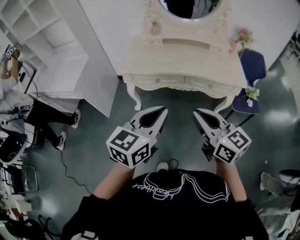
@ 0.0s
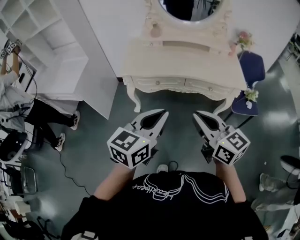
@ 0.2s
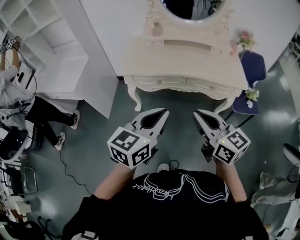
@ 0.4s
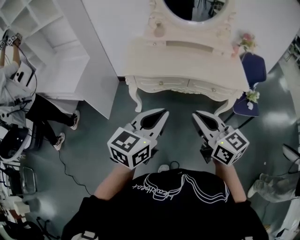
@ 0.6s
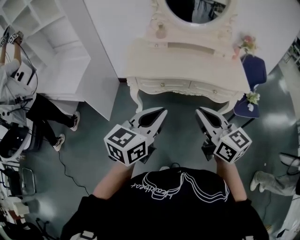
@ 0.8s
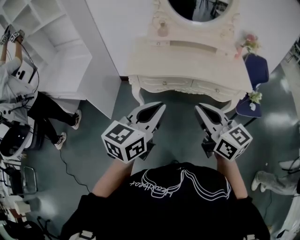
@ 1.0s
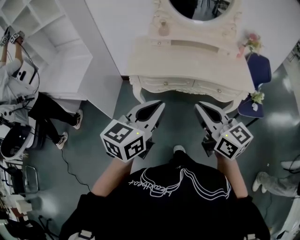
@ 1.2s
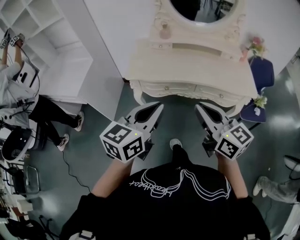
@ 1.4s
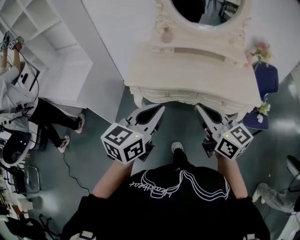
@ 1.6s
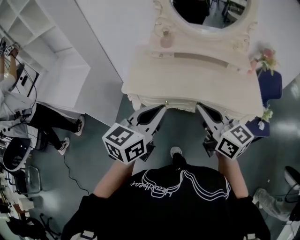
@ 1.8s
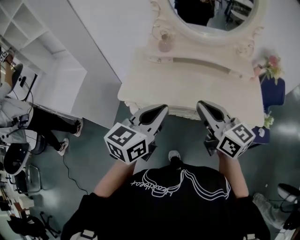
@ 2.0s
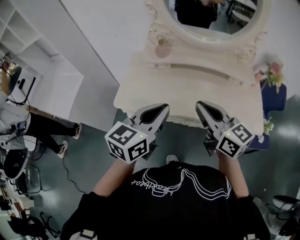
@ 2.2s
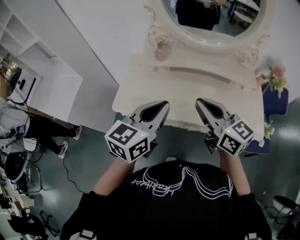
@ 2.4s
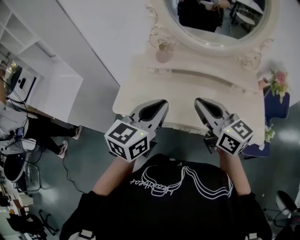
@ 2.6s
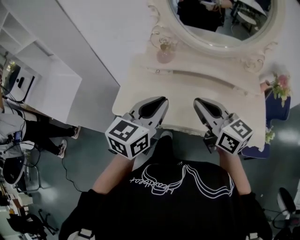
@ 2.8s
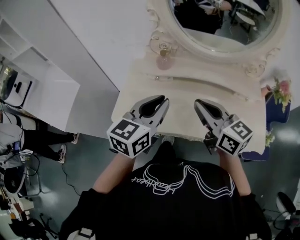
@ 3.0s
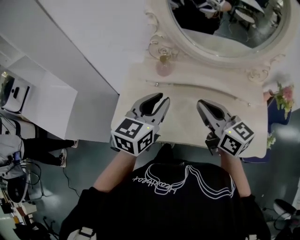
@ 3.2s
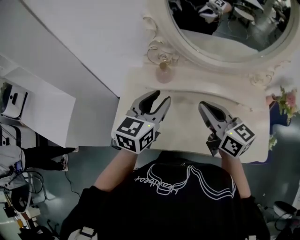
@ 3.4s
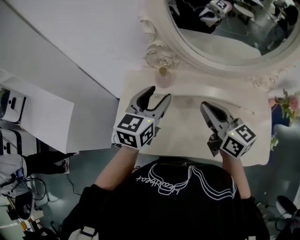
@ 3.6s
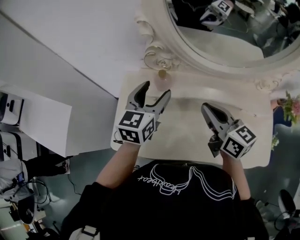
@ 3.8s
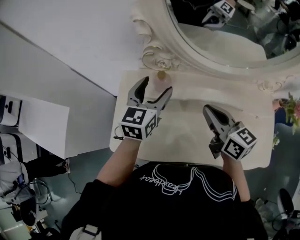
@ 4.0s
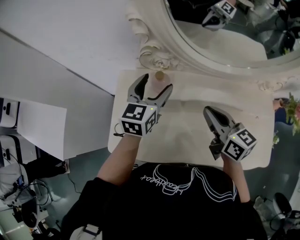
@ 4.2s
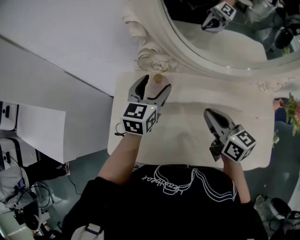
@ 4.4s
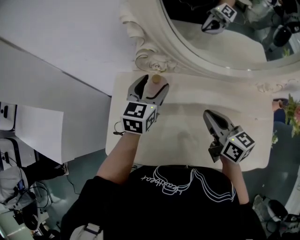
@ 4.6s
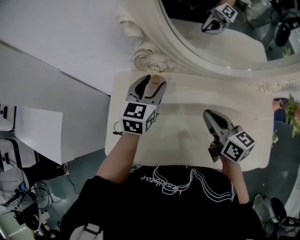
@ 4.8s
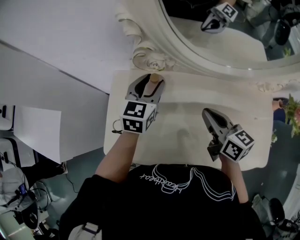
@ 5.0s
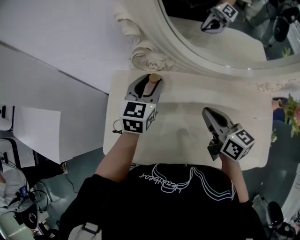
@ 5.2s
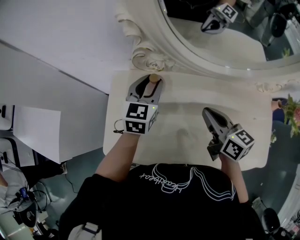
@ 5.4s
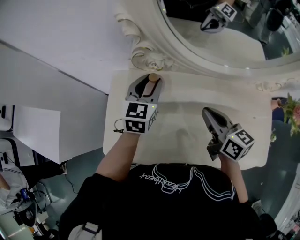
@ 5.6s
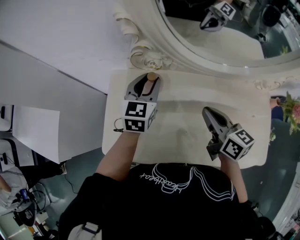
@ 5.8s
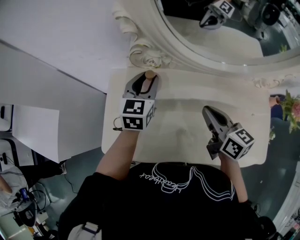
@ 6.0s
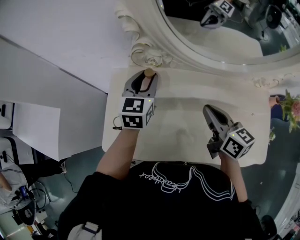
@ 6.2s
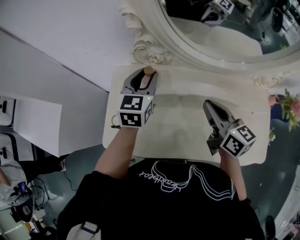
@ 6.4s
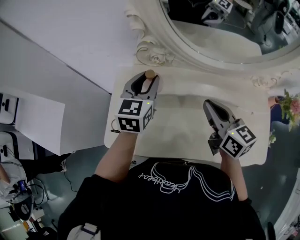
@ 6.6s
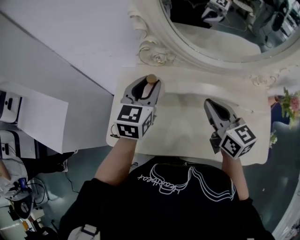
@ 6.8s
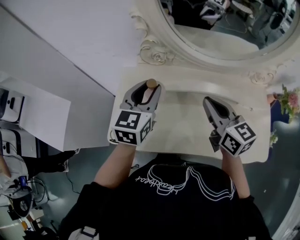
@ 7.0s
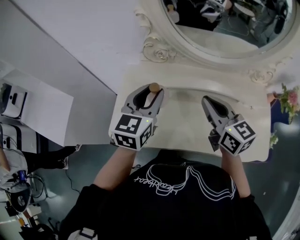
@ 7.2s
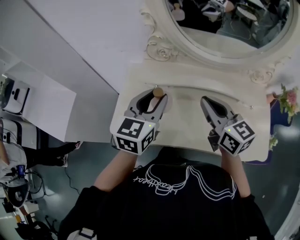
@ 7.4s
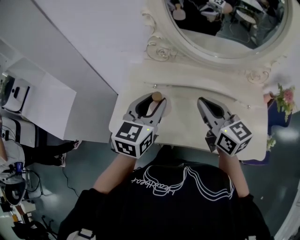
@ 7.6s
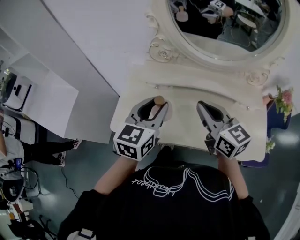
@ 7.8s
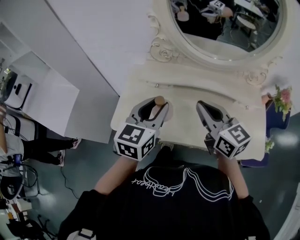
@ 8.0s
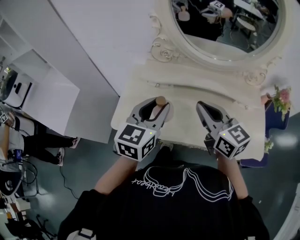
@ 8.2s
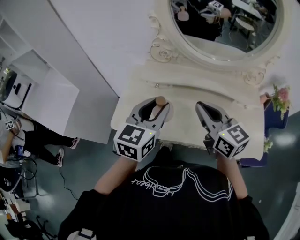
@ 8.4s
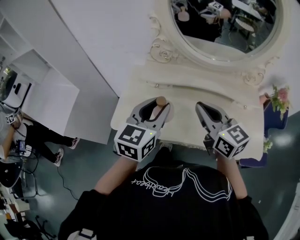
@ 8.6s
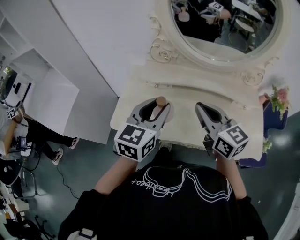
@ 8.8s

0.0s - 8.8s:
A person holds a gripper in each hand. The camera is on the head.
0.0s - 1.4s: The left gripper is displaced forward and to the left by roughly 10 cm; the right gripper moves forward, about 10 cm.
1.4s - 3.0s: The two grippers go roughly 35 cm forward.
3.0s - 4.4s: The left gripper travels forward by some 30 cm, and opens up. The right gripper moves forward and downward, roughly 20 cm.
4.4s - 5.8s: The left gripper closes its fingers.
5.8s - 7.4s: The right gripper travels upward and backward by some 10 cm, and swivels roughly 20 degrees, while the left gripper shifts approximately 20 cm backward and upward.
7.4s - 8.8s: The grippers both shift backward by approximately 5 cm.

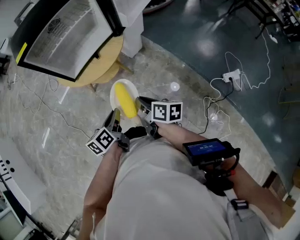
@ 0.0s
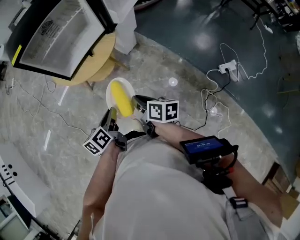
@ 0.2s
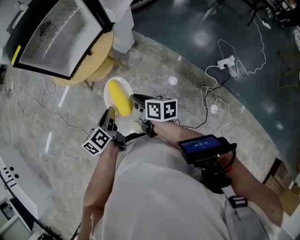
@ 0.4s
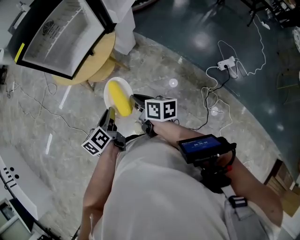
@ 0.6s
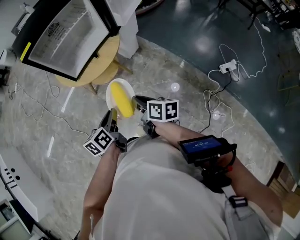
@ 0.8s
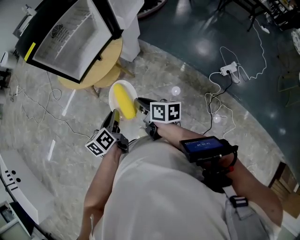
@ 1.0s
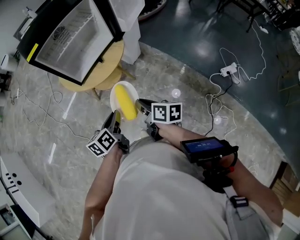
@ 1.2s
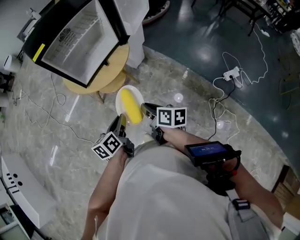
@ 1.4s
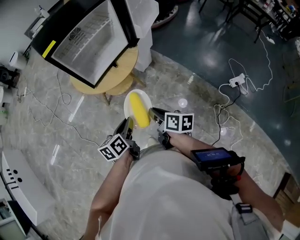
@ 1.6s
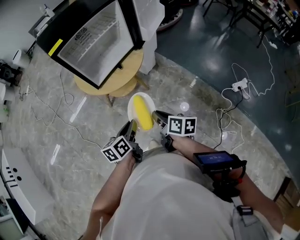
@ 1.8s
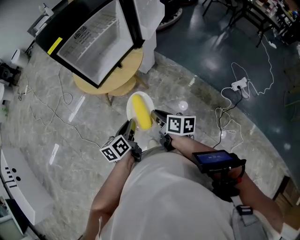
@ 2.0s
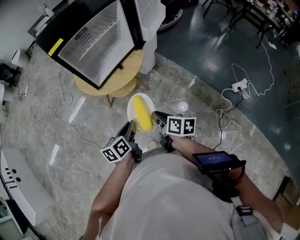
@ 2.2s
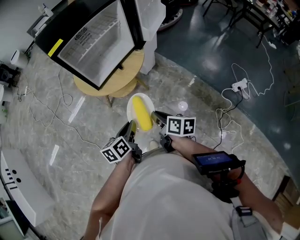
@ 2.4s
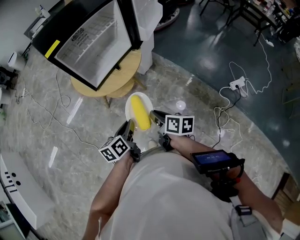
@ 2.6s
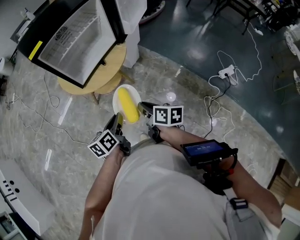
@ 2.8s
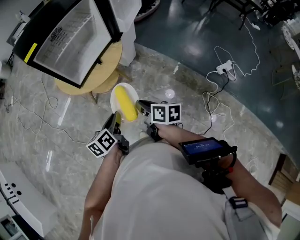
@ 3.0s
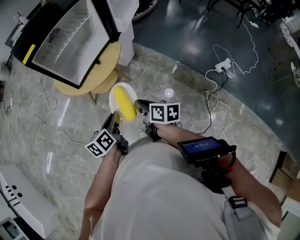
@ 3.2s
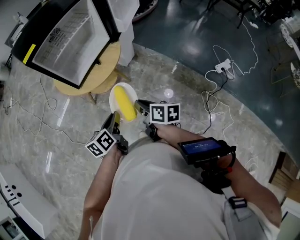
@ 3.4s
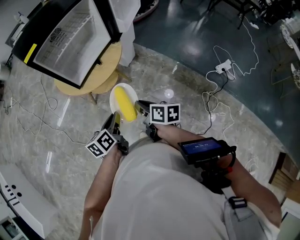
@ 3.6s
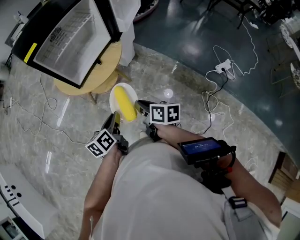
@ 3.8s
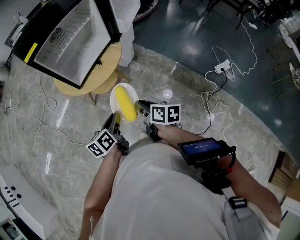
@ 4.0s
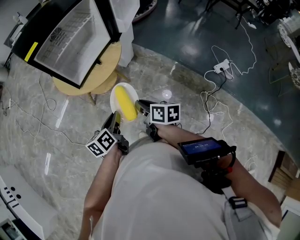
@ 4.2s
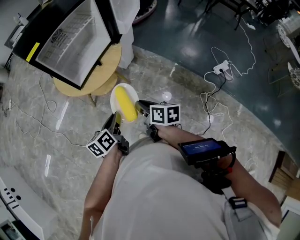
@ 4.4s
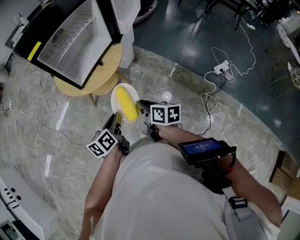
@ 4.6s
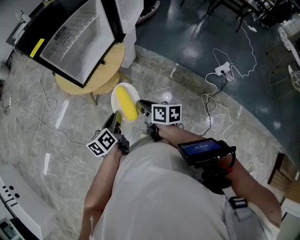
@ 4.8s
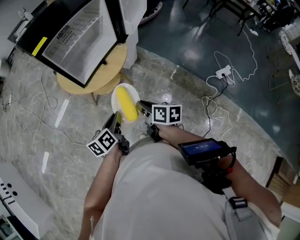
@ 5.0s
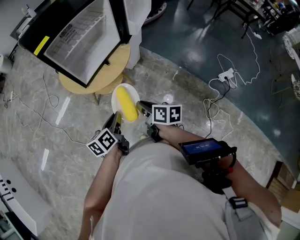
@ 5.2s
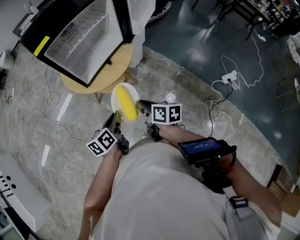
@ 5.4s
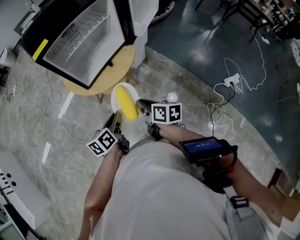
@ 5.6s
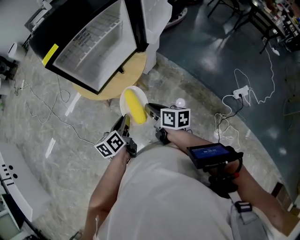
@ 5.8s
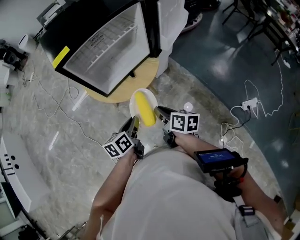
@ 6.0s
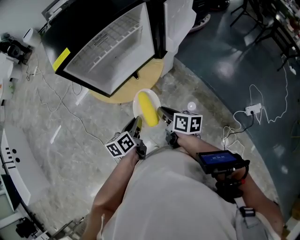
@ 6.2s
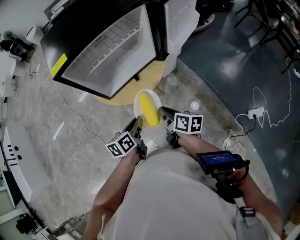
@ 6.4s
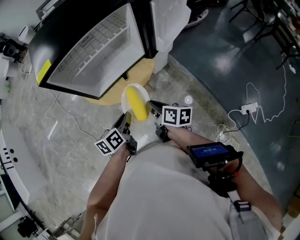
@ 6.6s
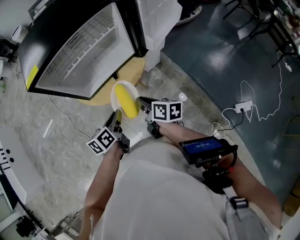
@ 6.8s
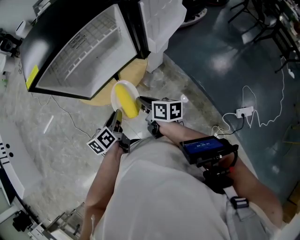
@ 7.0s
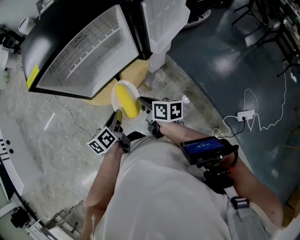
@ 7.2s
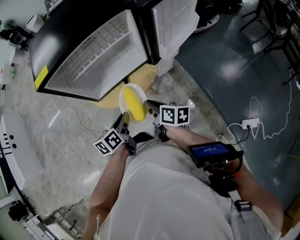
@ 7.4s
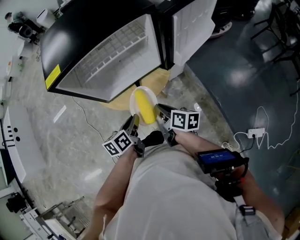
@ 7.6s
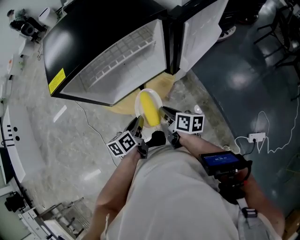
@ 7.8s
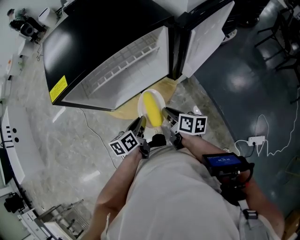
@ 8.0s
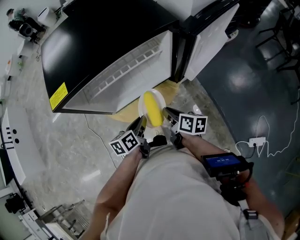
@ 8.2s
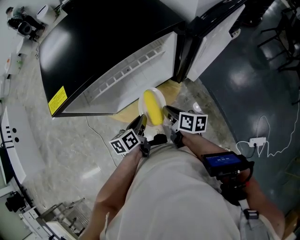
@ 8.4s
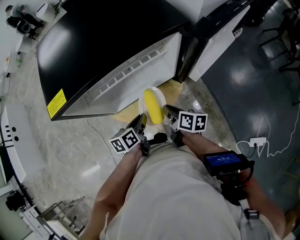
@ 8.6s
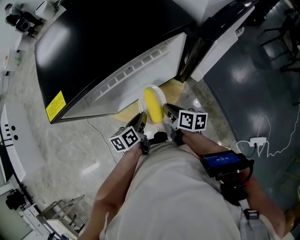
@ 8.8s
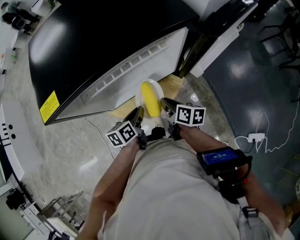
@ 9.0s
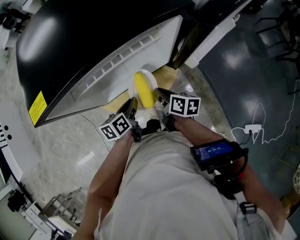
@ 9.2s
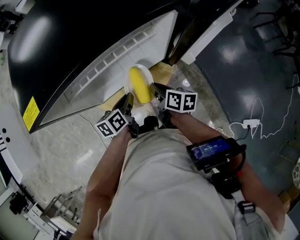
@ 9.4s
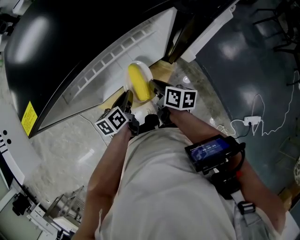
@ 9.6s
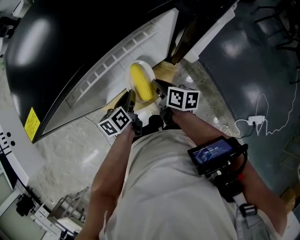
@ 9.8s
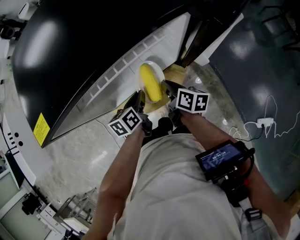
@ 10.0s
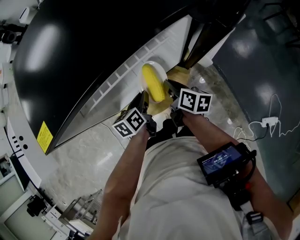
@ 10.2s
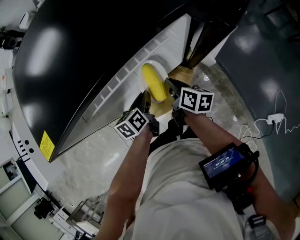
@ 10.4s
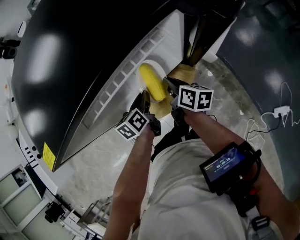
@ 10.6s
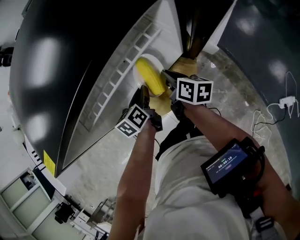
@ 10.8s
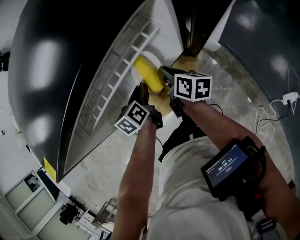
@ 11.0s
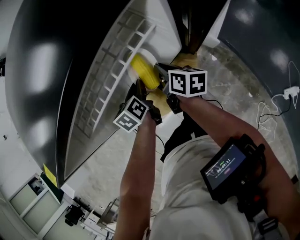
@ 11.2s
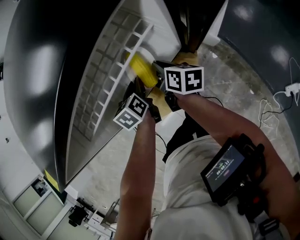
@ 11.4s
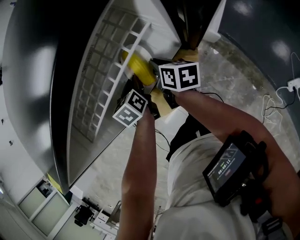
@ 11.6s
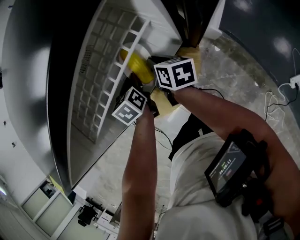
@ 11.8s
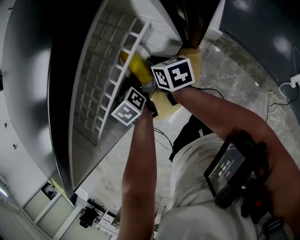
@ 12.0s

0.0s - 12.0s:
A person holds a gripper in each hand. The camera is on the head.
0.0s - 1.6s: The left gripper moves some 5 cm. The right gripper is displaced to the left by some 5 cm.
1.6s - 3.0s: The grippers stay close to where they were, moving slightly.
3.0s - 4.4s: Both grippers stay about where they are.
4.4s - 6.0s: Both grippers travel together forward, approximately 10 cm.
6.0s - 7.6s: The right gripper travels forward by roughly 15 cm; the left gripper goes roughly 10 cm forward and to the right.
7.6s - 9.0s: The two grippers go approximately 10 cm forward.
9.0s - 10.4s: Both grippers travel together forward, roughly 10 cm.
10.4s - 12.0s: Both grippers move forward, about 10 cm. The left gripper rotates approximately 30 degrees.

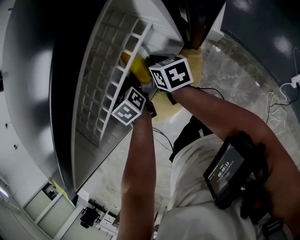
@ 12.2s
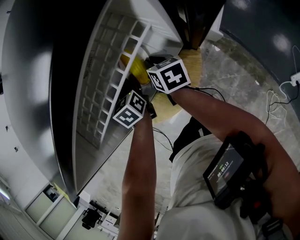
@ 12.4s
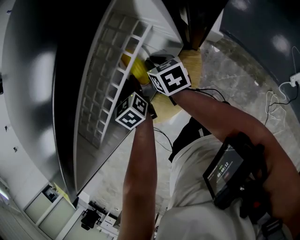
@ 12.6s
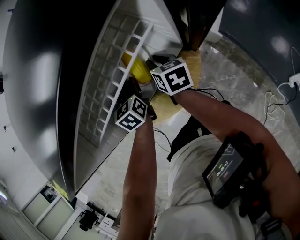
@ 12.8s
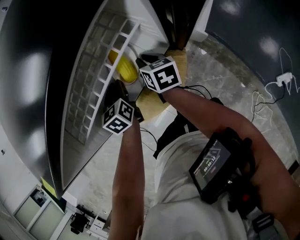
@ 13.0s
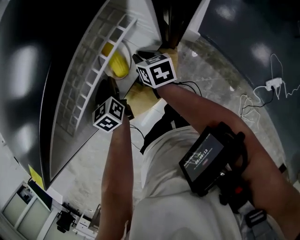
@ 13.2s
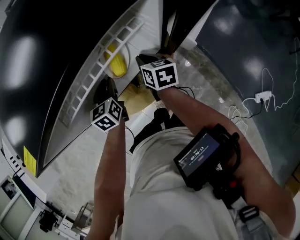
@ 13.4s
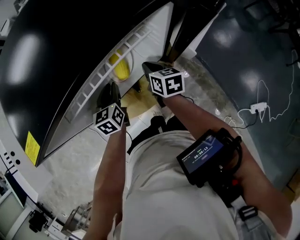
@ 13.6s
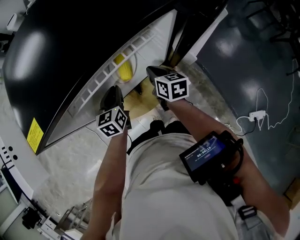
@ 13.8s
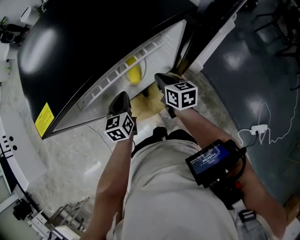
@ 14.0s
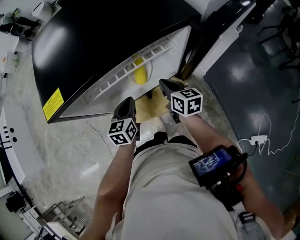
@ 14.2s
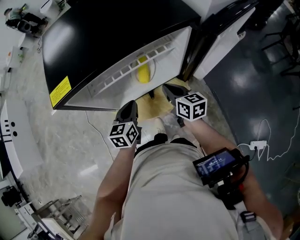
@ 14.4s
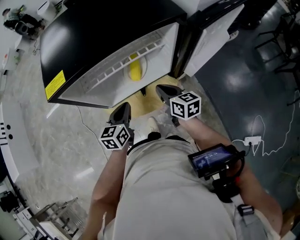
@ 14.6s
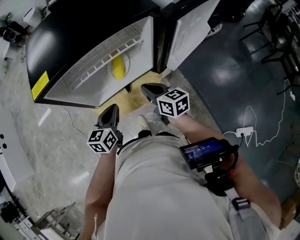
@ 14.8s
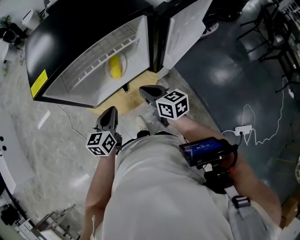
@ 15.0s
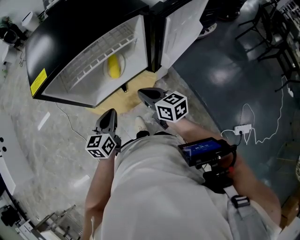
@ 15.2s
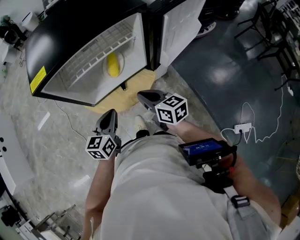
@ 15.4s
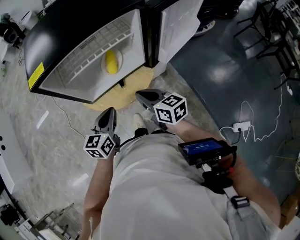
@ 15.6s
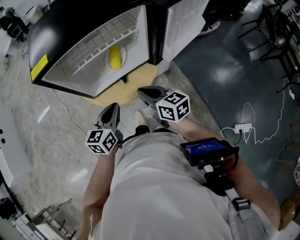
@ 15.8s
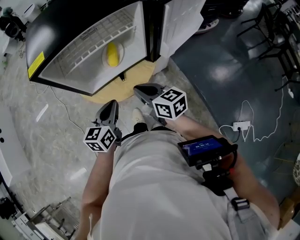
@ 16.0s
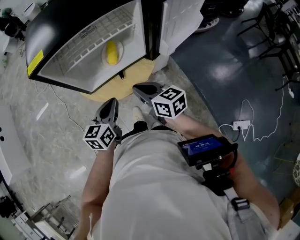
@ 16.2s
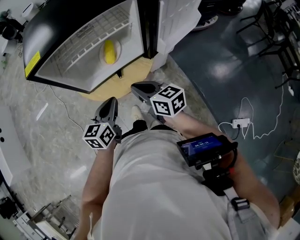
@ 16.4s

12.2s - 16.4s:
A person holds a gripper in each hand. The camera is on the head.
12.2s - 13.6s: The right gripper shifts by some 5 cm, while the left gripper heads backward and upward, covering some 10 cm.
13.6s - 15.0s: The grippers both shift backward and upward by approximately 20 cm. The right gripper swivels some 20 degrees.
15.0s - 16.4s: Both grippers travel together backward, some 5 cm.
